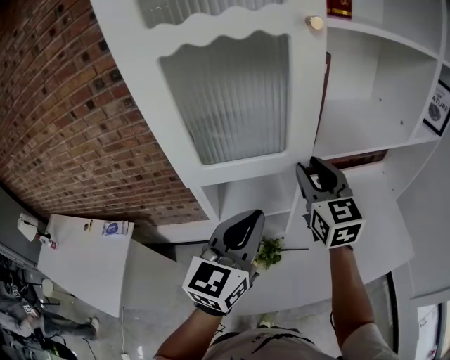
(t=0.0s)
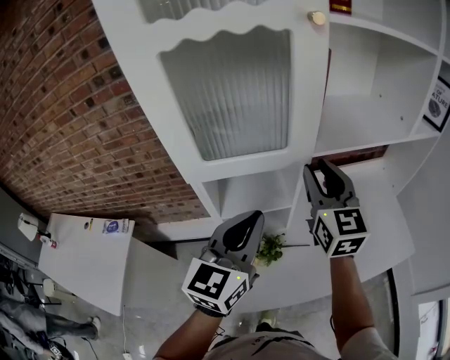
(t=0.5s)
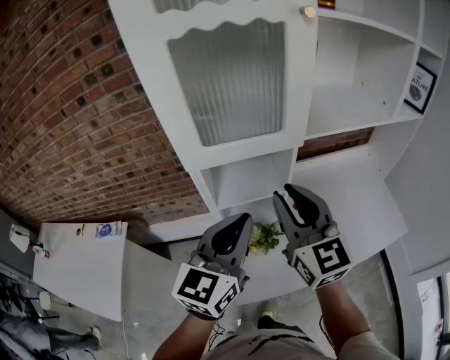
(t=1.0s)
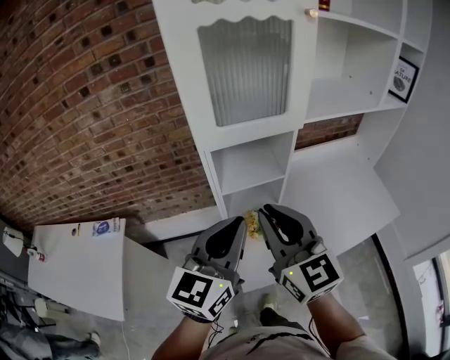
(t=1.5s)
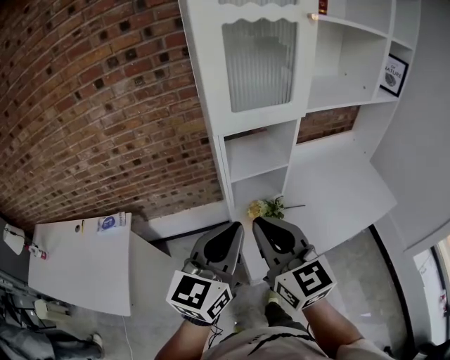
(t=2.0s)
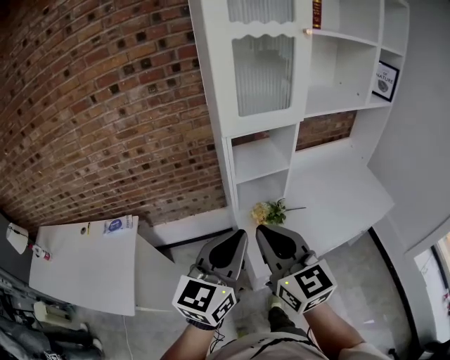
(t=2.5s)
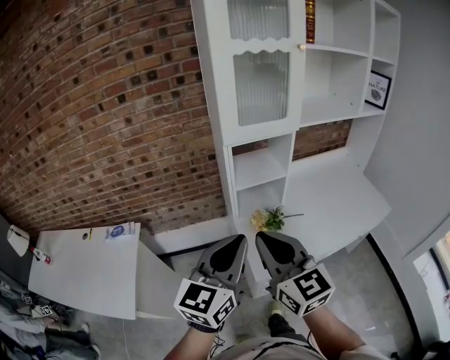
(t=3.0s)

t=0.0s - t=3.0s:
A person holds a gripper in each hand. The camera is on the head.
t=0.0s - t=1.5s: The left gripper heads backward and to the left, covering some 15 cm. The right gripper shifts roughly 30 cm backward and to the left, and closes its fingers.
t=1.5s - t=3.0s: Both grippers travel together backward and to the left, some 20 cm.

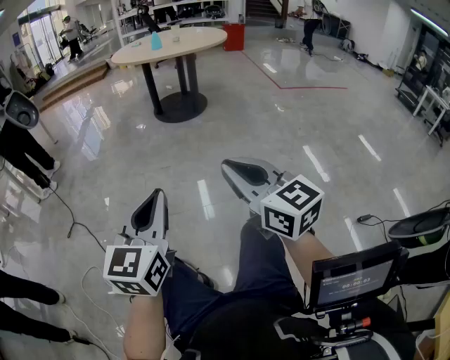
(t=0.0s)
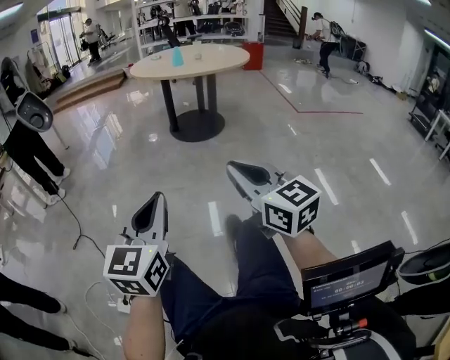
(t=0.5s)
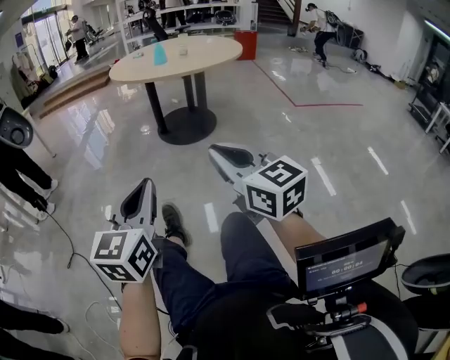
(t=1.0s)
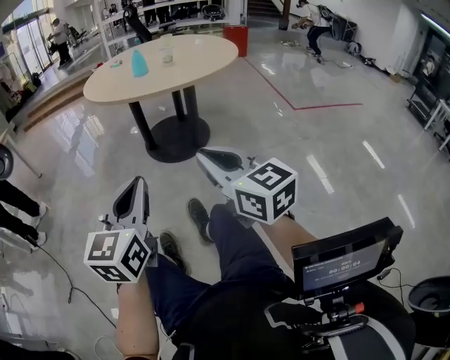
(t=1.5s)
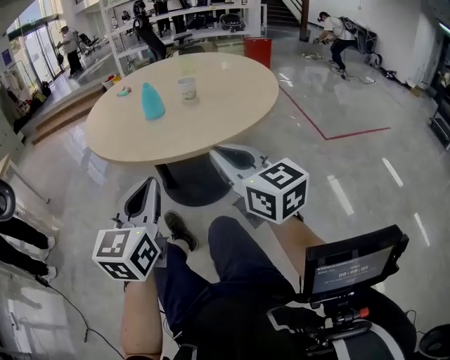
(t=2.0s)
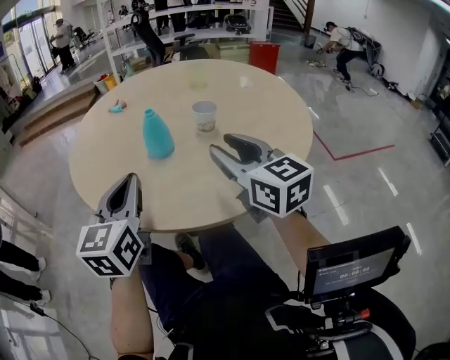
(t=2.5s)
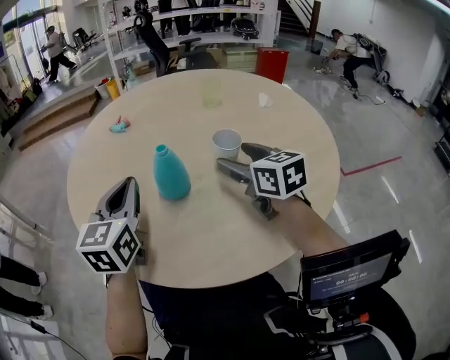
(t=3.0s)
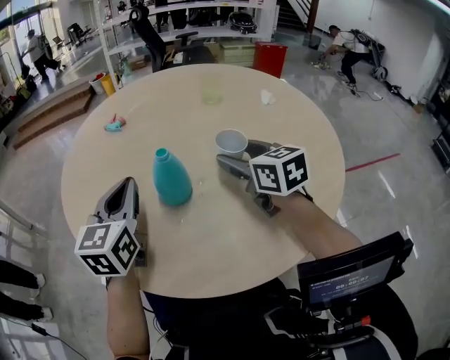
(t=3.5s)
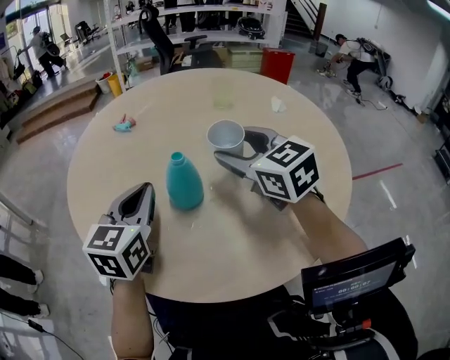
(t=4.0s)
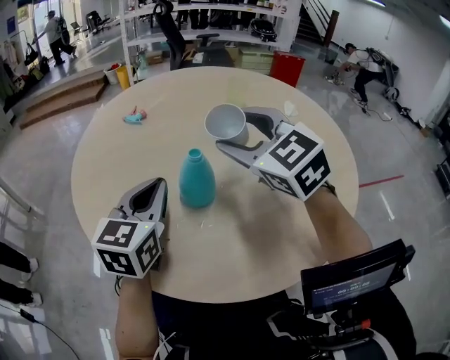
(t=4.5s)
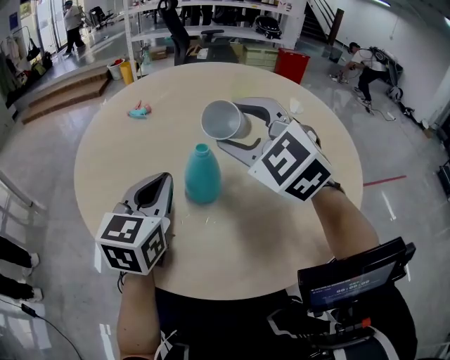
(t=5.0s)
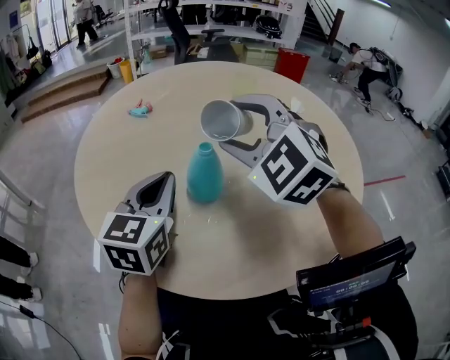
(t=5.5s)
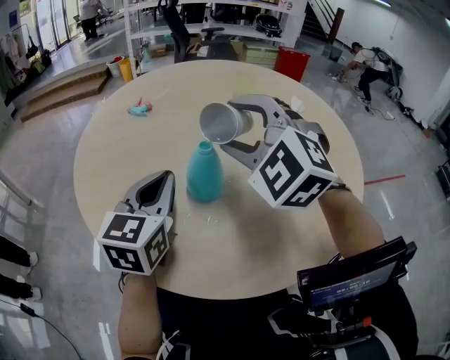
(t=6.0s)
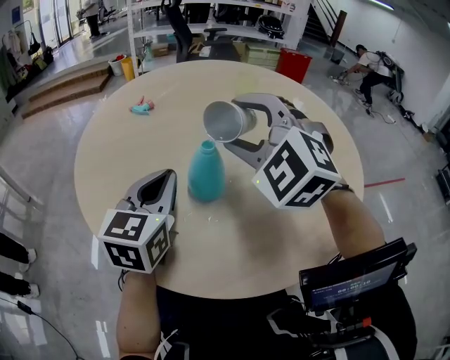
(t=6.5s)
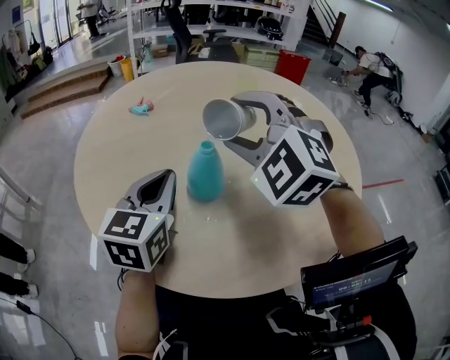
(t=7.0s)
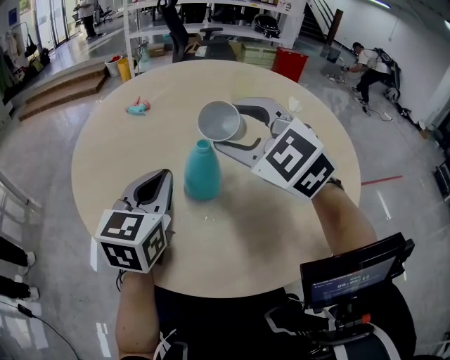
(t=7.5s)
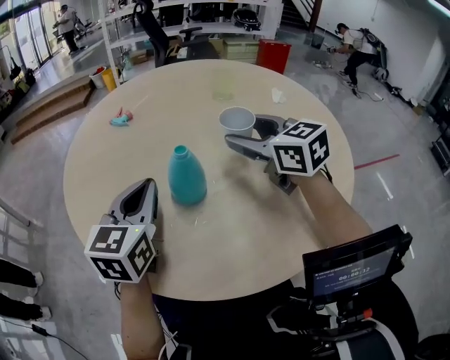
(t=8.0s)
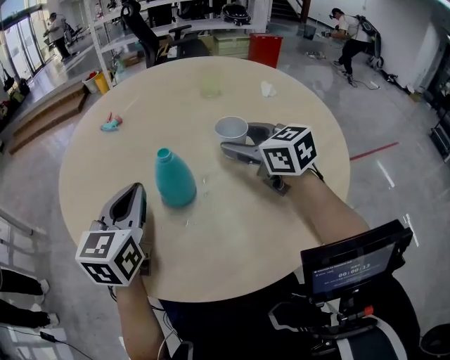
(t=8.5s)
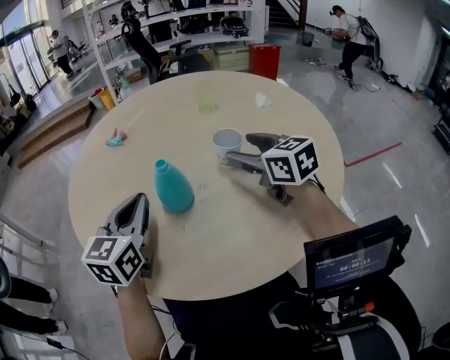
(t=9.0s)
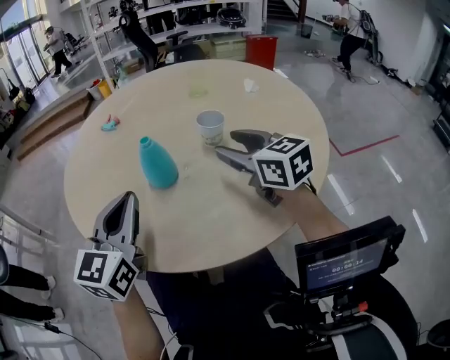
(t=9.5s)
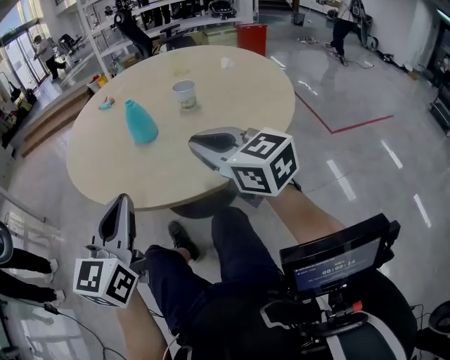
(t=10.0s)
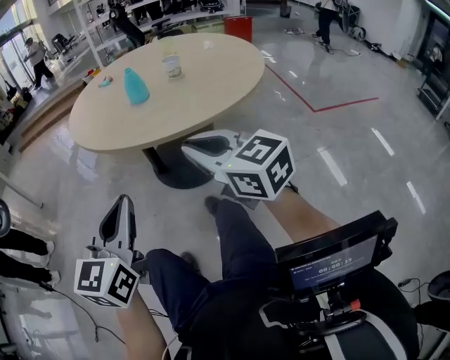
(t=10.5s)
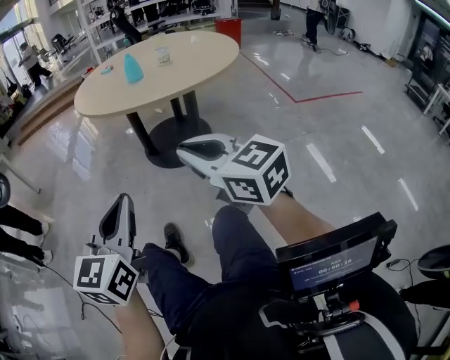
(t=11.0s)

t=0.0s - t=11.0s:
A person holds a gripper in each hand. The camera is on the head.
t=0.0s - t=2.0s: Both grippers are carried forward, roughly 80 cm.
t=2.0s - t=3.5s: The two grippers travel together, forward, approximately 40 cm. The right gripper turns by about 20 degrees, and opens its fingers.
t=3.5s - t=5.5s: The right gripper heads to the left and upward, covering about 15 cm, and rolls counterclockwise, seen from behind, by roughly 60 degrees.
t=5.5s - t=7.5s: There are only small adjustments of the grippers.
t=7.5s - t=9.0s: The right gripper is displaced to the right and downward by about 15 cm, and rolls clockwise, seen from behind, by about 50 degrees.
t=9.0s - t=11.0s: The pair of grippers is taken backward, some 60 cm. The right gripper closes up.

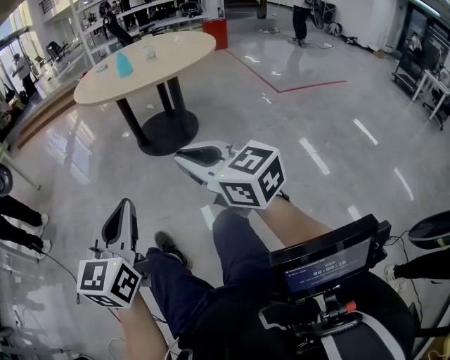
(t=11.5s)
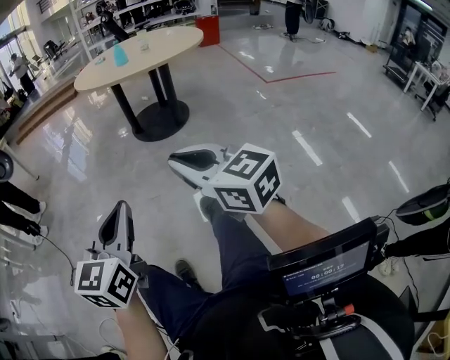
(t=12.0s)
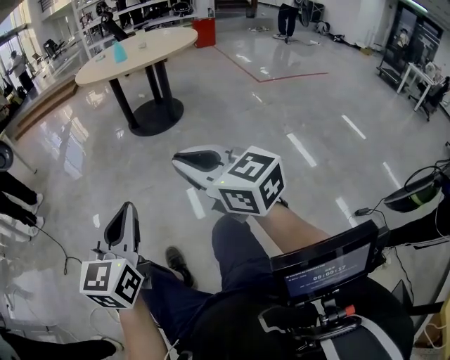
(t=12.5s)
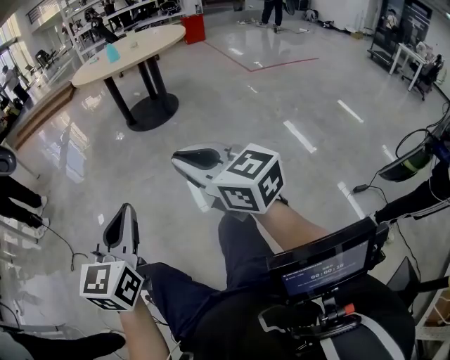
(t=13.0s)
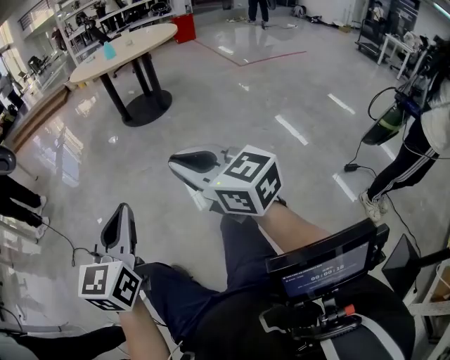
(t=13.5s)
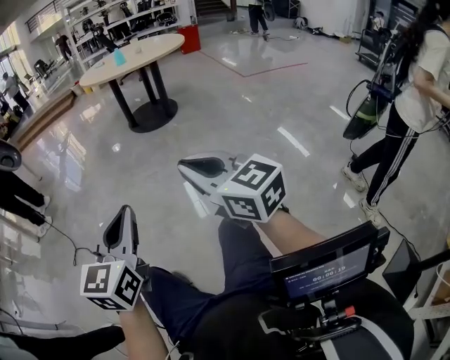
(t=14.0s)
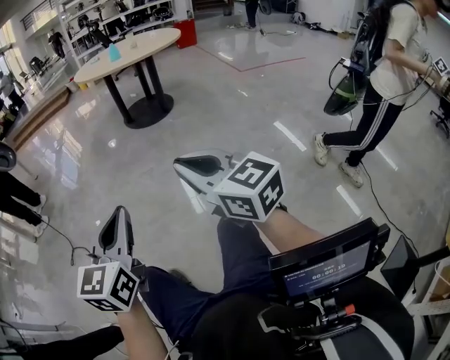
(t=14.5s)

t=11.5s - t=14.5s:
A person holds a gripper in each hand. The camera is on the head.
t=11.5s - t=13.0s: Both grippers move backward, about 30 cm.
t=13.0s - t=14.5s: The left gripper heads to the left and backward, covering approximately 15 cm; the right gripper shifts approximately 15 cm backward and to the left.

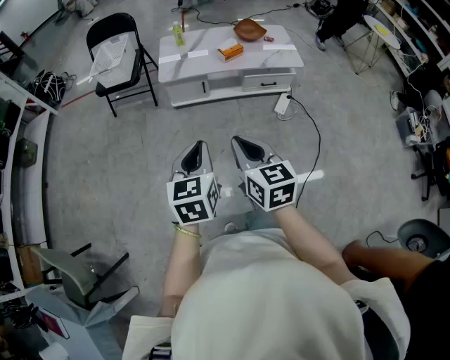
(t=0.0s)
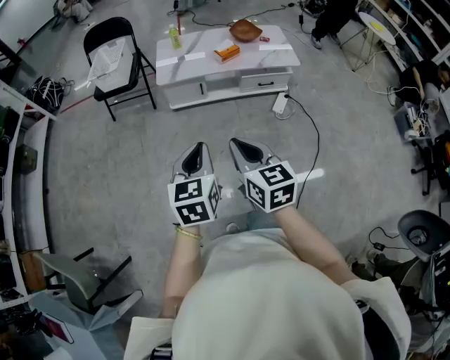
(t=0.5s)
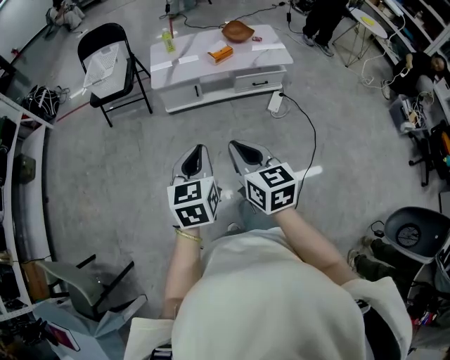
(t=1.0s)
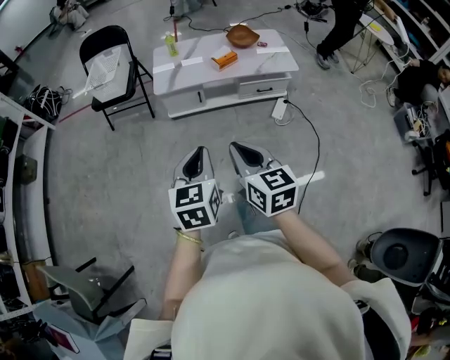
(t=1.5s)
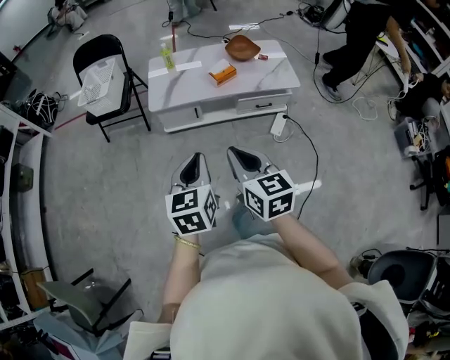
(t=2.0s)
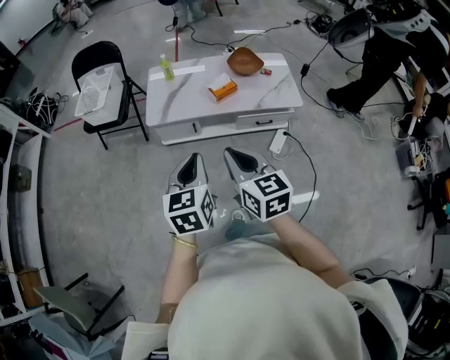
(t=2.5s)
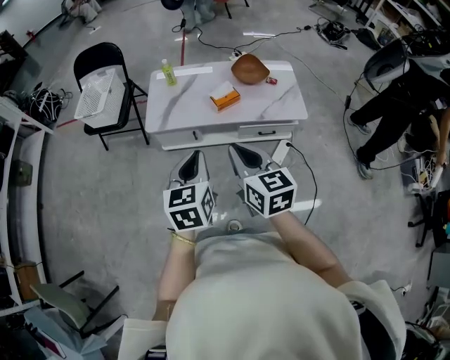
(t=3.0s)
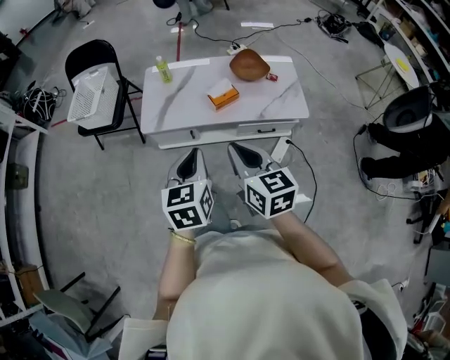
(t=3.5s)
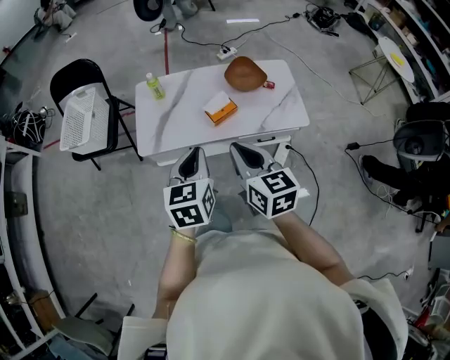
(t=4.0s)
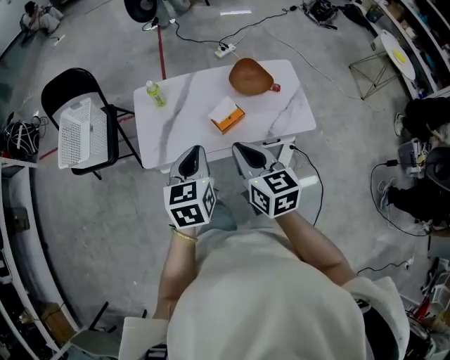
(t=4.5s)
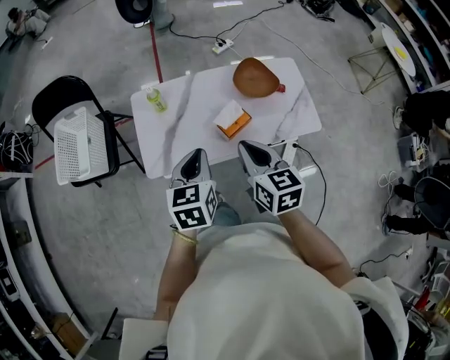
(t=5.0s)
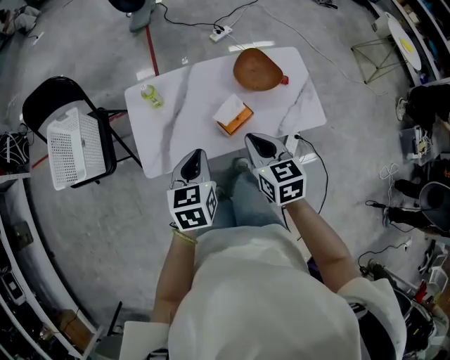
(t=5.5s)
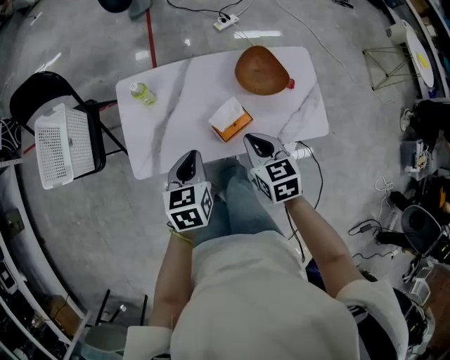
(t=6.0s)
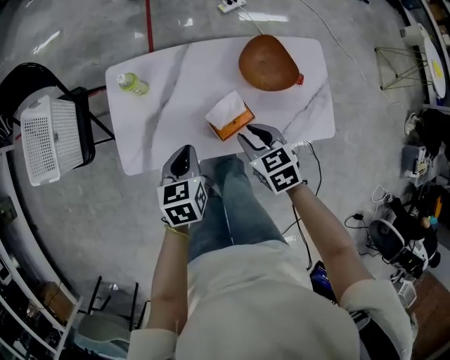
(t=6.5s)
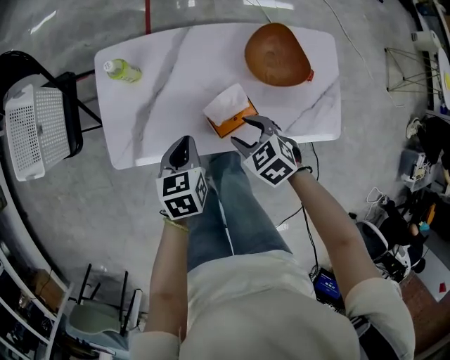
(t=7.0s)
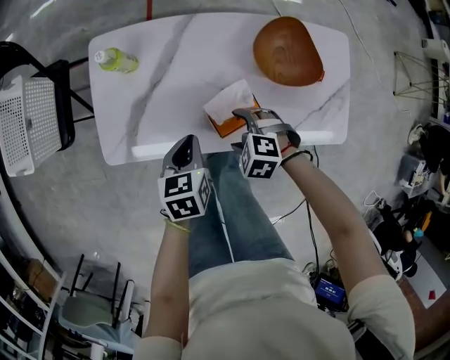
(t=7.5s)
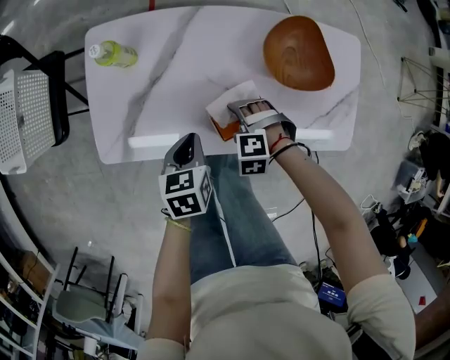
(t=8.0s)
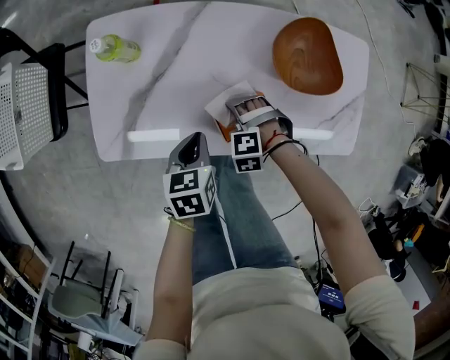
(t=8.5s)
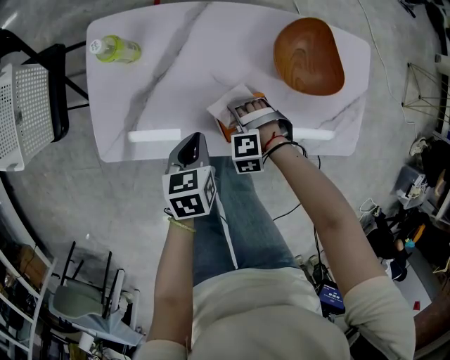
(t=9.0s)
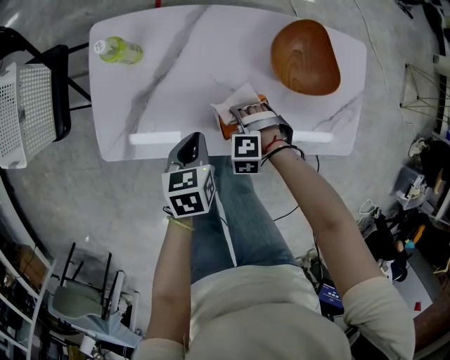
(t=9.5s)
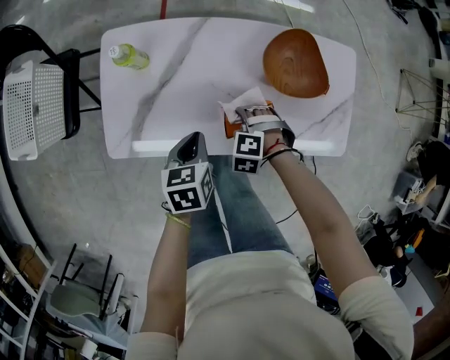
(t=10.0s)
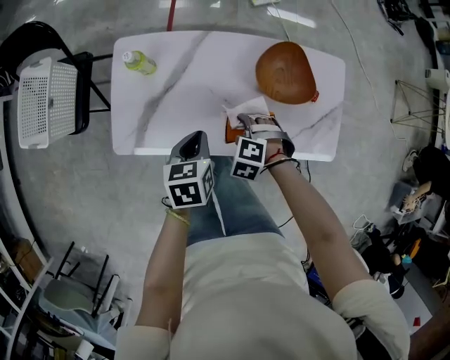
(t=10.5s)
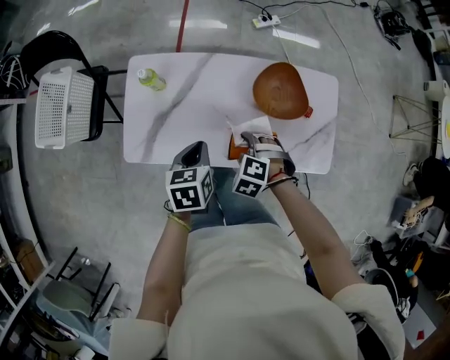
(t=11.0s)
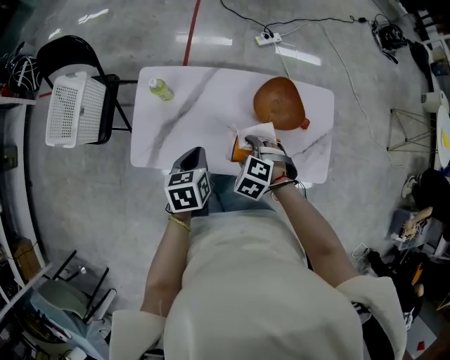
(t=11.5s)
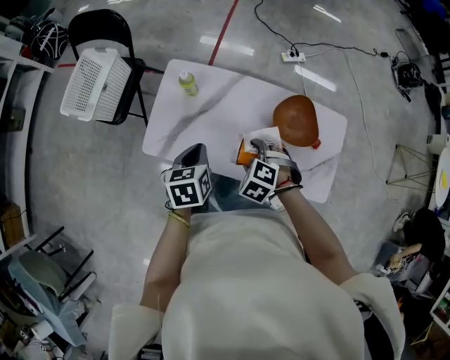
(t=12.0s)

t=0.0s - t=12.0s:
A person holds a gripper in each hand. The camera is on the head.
t=0.0s - t=2.0s: Both grippers travel together forward, roughly 15 cm.
t=2.0s - t=4.0s: The grippers both shift forward by approximately 35 cm.
t=4.0s - t=6.0s: The two grippers go roughly 30 cm forward and downward. The right gripper turns by about 20 degrees.
t=6.0s - t=8.0s: The grippers both shift downward by approximately 25 cm. The right gripper twists approximately 80 degrees counterclockwise, seen from behind, and opens its fingers.
t=8.0s - t=10.0s: The grippers move only a little.
t=10.0s - t=12.0s: The grippers both shift upward by approximately 20 cm.
